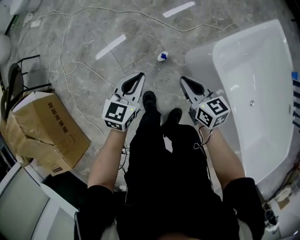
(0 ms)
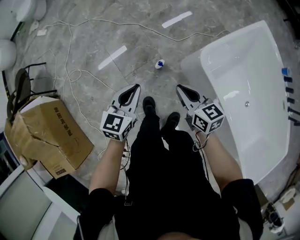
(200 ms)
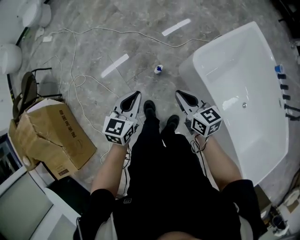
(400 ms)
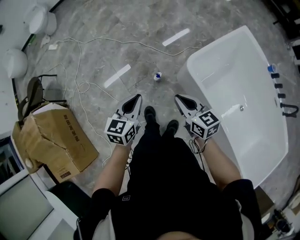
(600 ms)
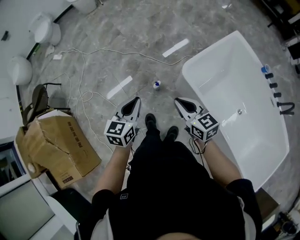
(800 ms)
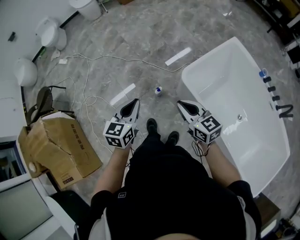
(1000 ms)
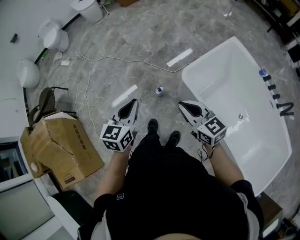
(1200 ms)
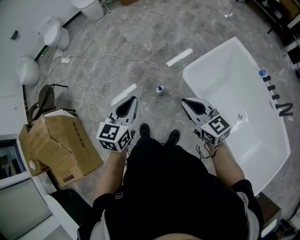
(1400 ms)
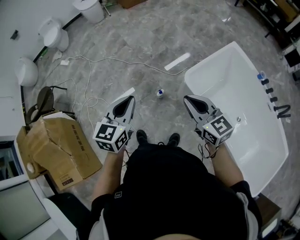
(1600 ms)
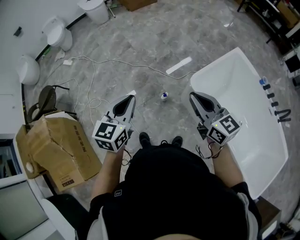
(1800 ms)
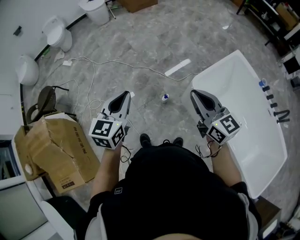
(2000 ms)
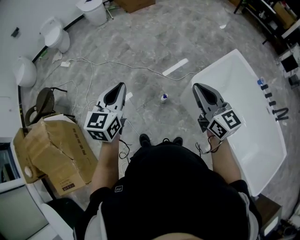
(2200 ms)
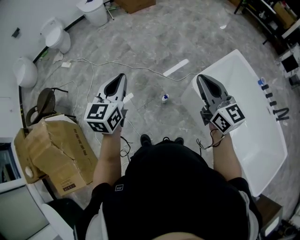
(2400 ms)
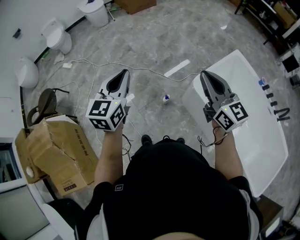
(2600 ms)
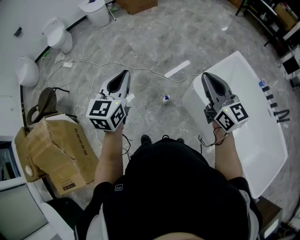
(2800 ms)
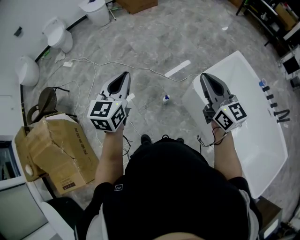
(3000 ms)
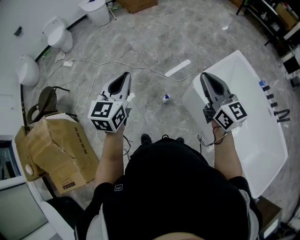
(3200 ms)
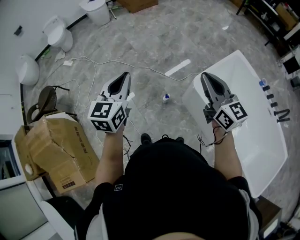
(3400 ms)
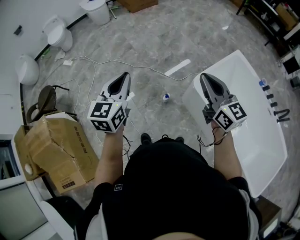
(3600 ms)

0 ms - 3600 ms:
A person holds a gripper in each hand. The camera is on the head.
0 ms - 1800 ms: Both grippers move upward, some 40 cm. The right gripper changes its angle by some 30 degrees.
1800 ms - 3600 ms: The left gripper heads forward, to the left and upward, covering approximately 10 cm. The right gripper goes some 5 cm forward.

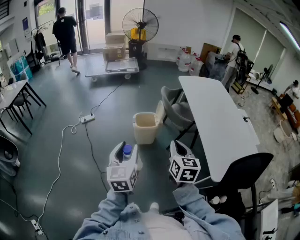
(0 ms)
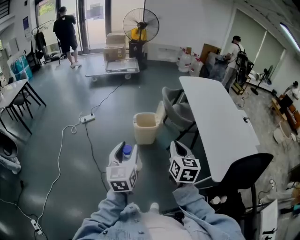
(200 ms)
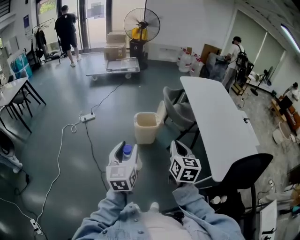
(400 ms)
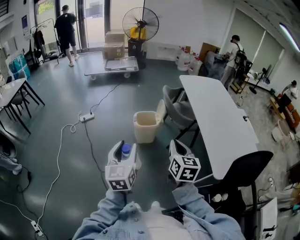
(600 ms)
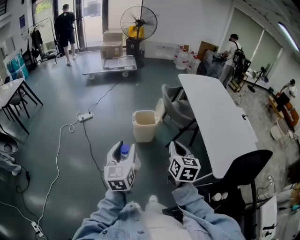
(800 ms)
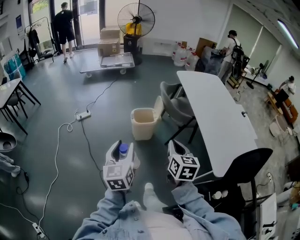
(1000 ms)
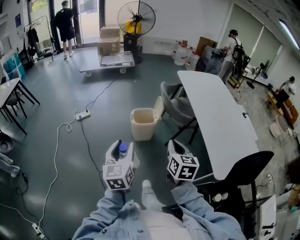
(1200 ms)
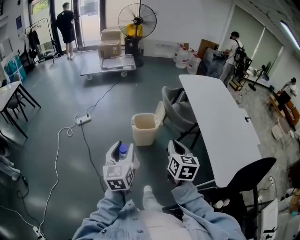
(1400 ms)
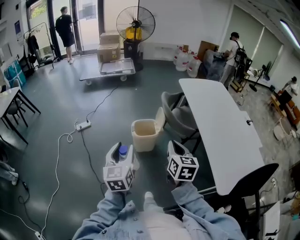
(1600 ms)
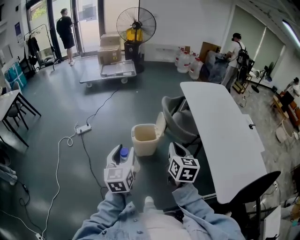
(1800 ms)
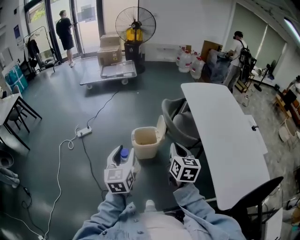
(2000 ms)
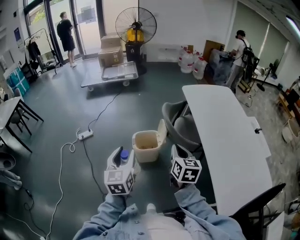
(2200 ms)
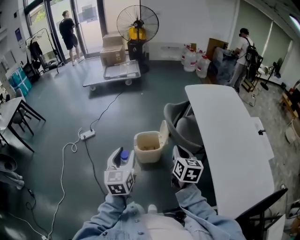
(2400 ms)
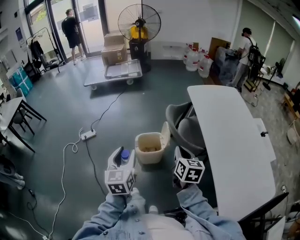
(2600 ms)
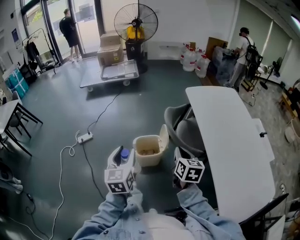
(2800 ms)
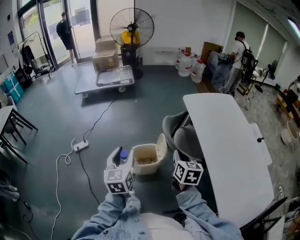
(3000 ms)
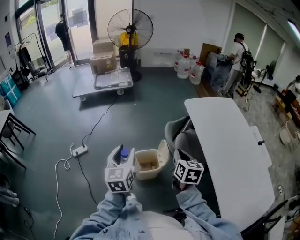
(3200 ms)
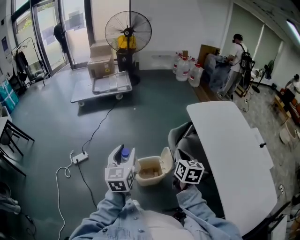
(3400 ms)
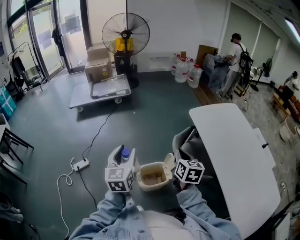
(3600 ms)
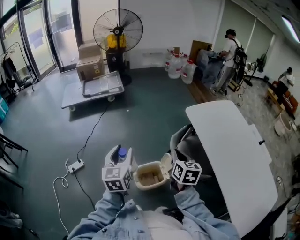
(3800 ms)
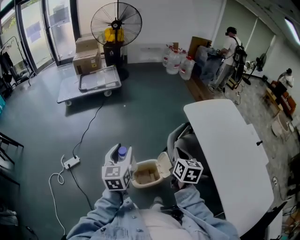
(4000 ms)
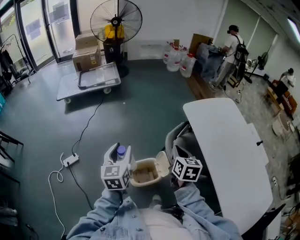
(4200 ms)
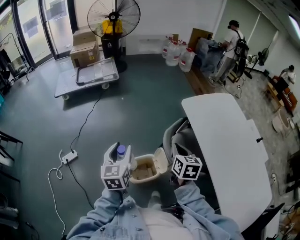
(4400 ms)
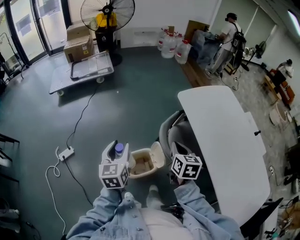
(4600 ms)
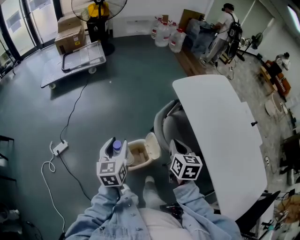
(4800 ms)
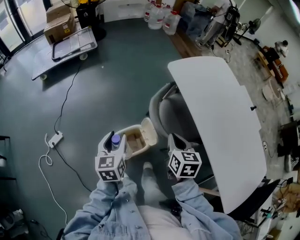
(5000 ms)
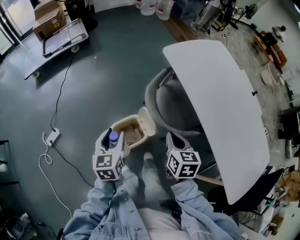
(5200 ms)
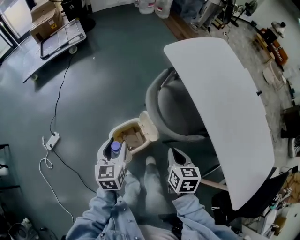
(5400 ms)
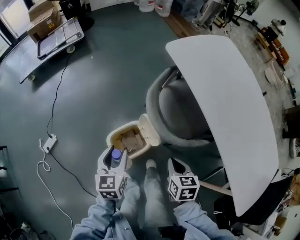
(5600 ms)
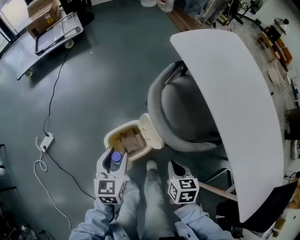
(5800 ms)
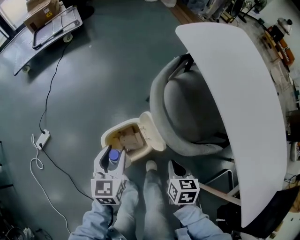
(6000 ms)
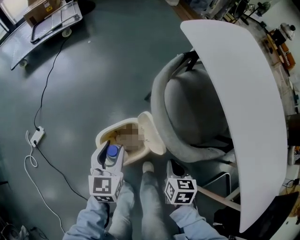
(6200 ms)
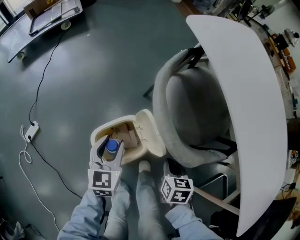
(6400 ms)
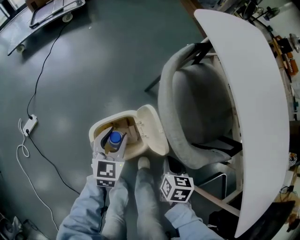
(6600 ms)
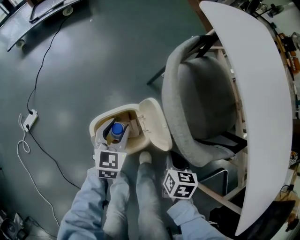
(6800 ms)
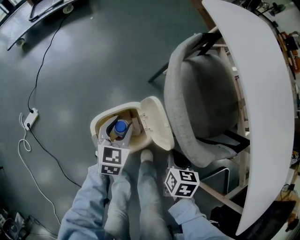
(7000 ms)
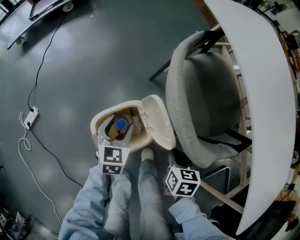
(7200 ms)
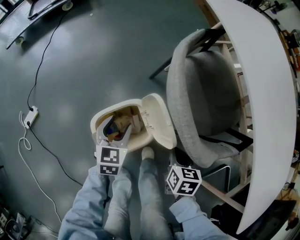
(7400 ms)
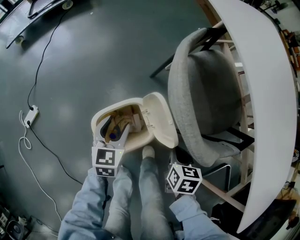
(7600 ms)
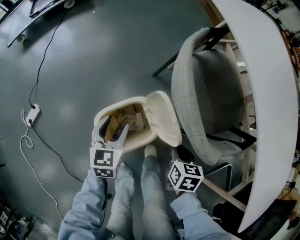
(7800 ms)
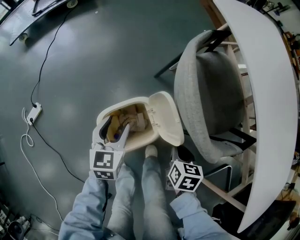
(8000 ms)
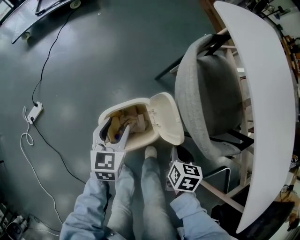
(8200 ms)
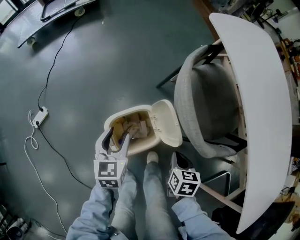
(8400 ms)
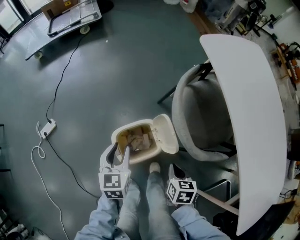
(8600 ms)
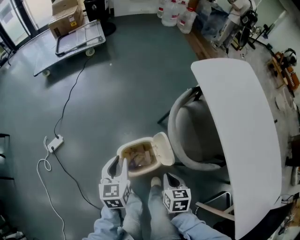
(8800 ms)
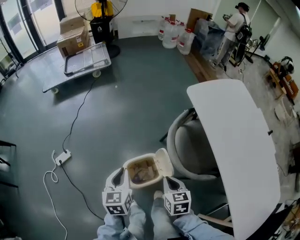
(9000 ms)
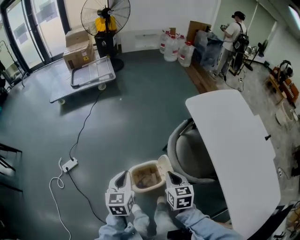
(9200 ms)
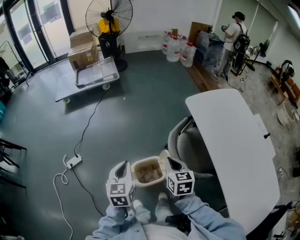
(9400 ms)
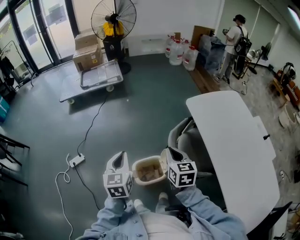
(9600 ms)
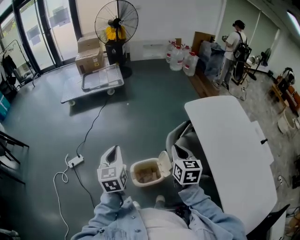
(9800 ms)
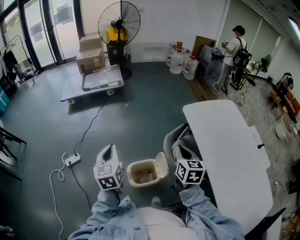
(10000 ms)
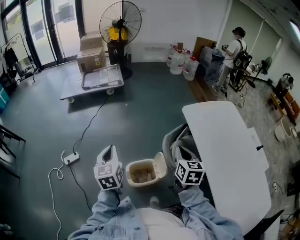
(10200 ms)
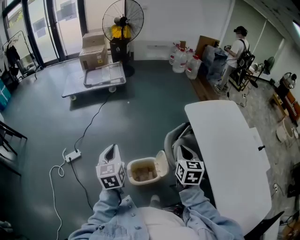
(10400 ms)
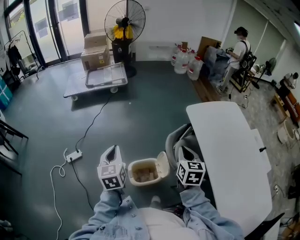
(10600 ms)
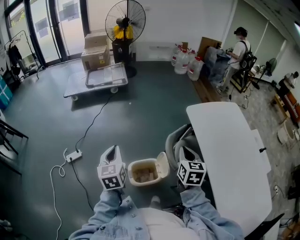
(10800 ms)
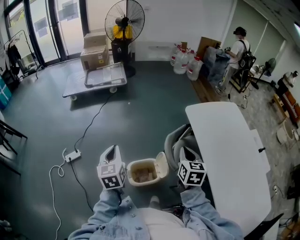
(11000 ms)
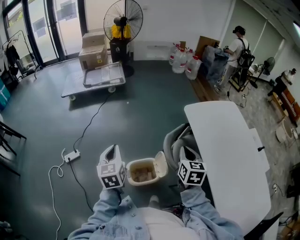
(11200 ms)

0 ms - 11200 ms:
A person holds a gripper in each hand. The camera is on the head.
0 ms - 1600 ms: Both grippers travel together forward, about 15 cm.
1600 ms - 3200 ms: The two grippers go approximately 35 cm forward.
3200 ms - 4800 ms: The two grippers go roughly 20 cm forward and downward.
4800 ms - 6400 ms: The two grippers go roughly 35 cm downward. The right gripper turns by approximately 20 degrees.
6400 ms - 8000 ms: The left gripper is displaced downward by some 5 cm.
8000 ms - 9600 ms: Both grippers move upward, roughly 40 cm. The right gripper angles its fingers upward, by about 30 degrees. Meanwhile the left gripper turns by approximately 20 degrees, and closes its fingers.
9600 ms - 11200 ms: The right gripper travels to the right by some 10 cm.

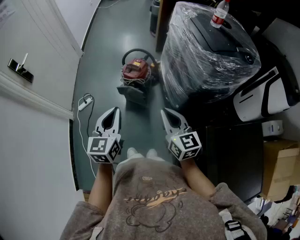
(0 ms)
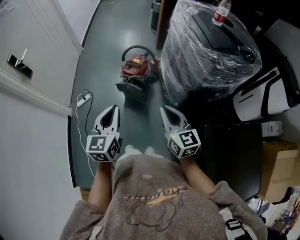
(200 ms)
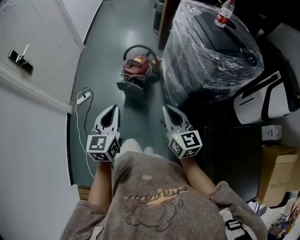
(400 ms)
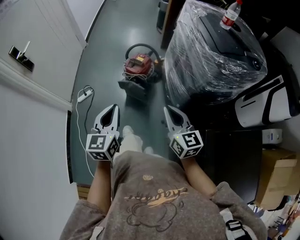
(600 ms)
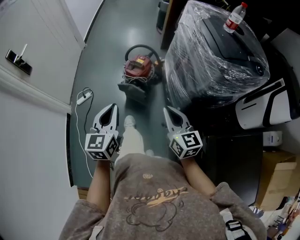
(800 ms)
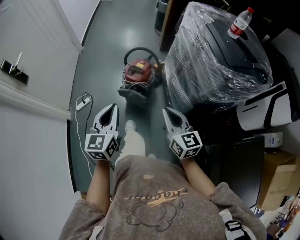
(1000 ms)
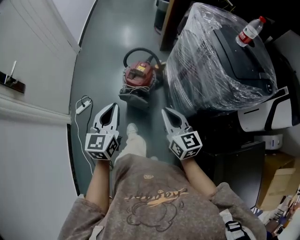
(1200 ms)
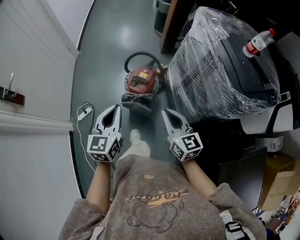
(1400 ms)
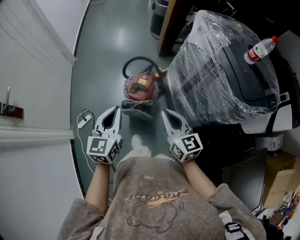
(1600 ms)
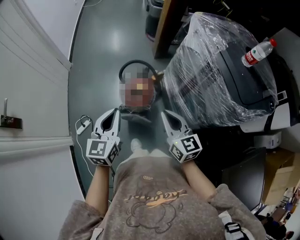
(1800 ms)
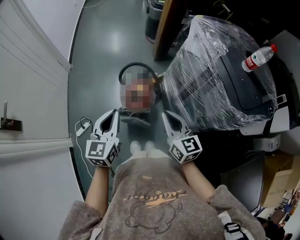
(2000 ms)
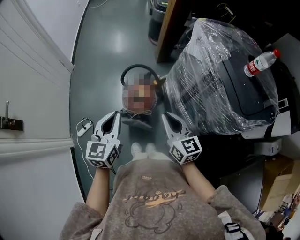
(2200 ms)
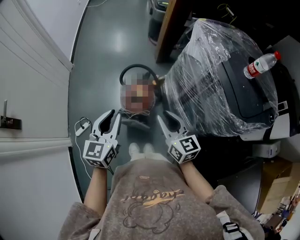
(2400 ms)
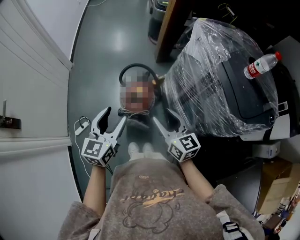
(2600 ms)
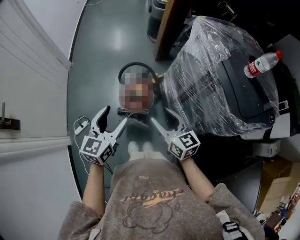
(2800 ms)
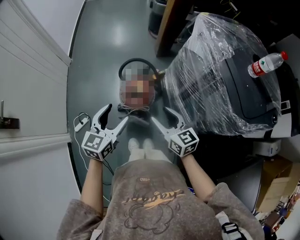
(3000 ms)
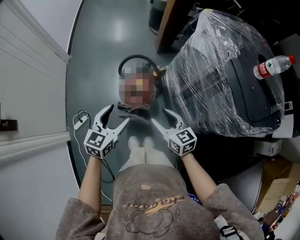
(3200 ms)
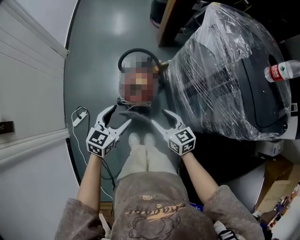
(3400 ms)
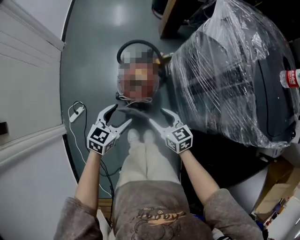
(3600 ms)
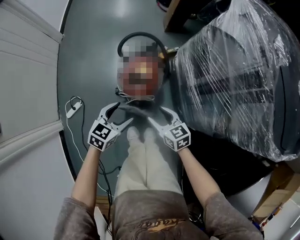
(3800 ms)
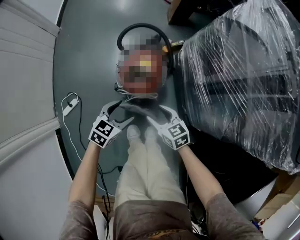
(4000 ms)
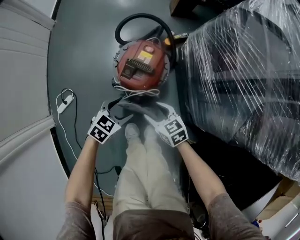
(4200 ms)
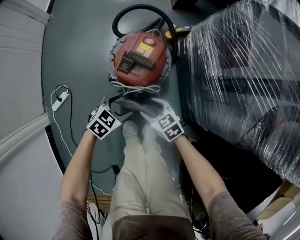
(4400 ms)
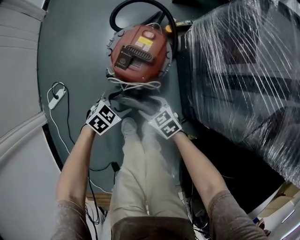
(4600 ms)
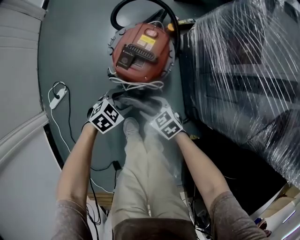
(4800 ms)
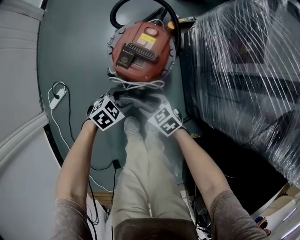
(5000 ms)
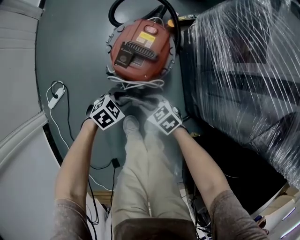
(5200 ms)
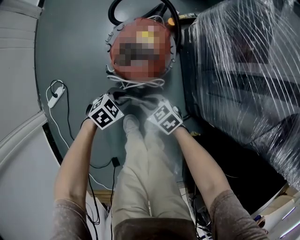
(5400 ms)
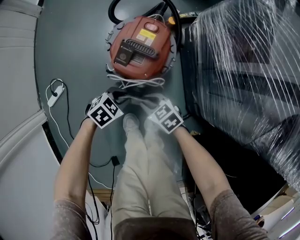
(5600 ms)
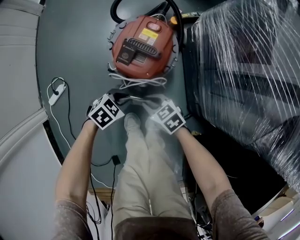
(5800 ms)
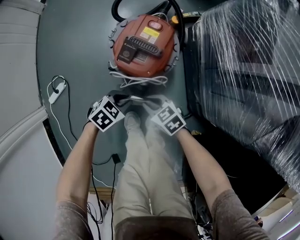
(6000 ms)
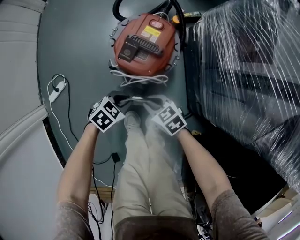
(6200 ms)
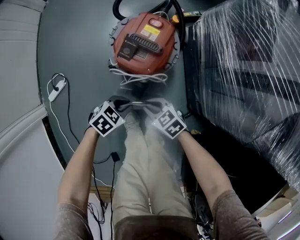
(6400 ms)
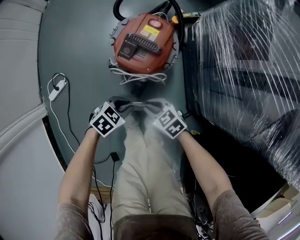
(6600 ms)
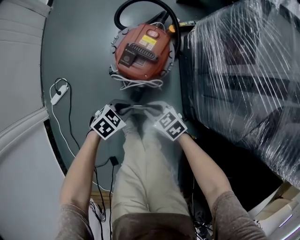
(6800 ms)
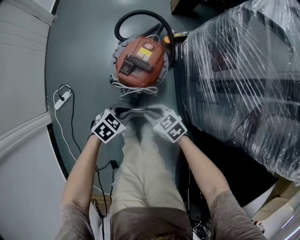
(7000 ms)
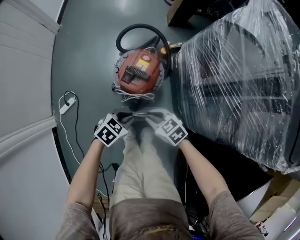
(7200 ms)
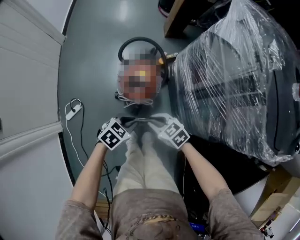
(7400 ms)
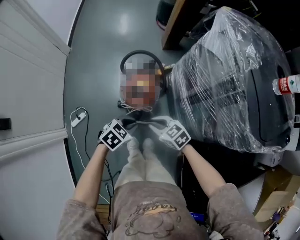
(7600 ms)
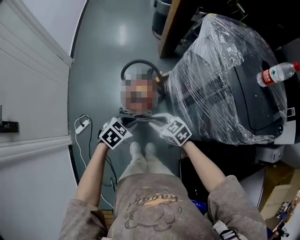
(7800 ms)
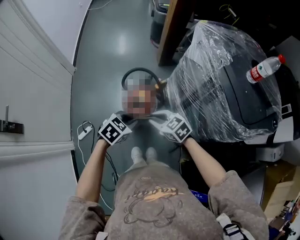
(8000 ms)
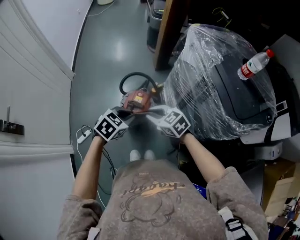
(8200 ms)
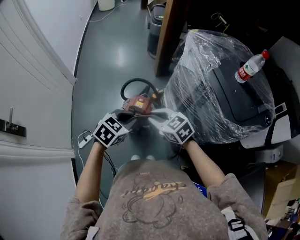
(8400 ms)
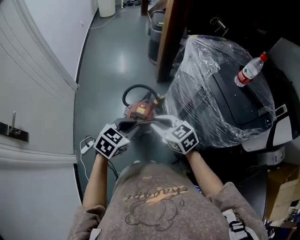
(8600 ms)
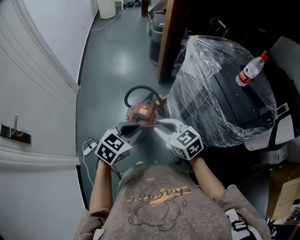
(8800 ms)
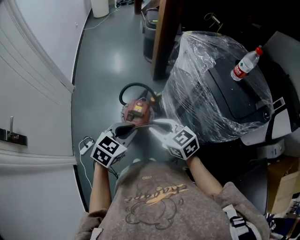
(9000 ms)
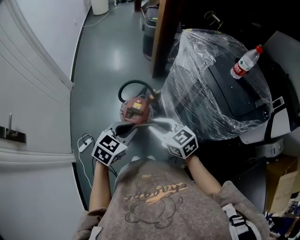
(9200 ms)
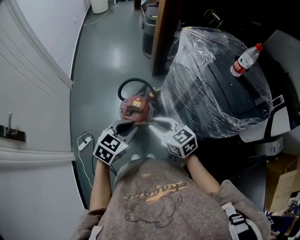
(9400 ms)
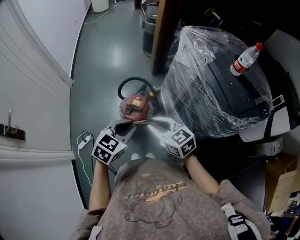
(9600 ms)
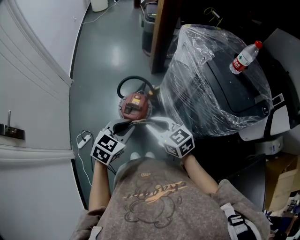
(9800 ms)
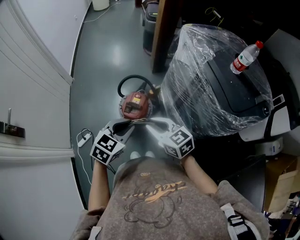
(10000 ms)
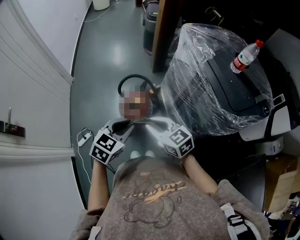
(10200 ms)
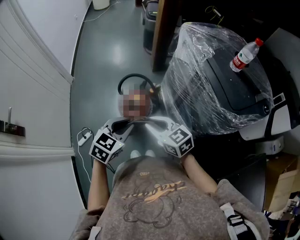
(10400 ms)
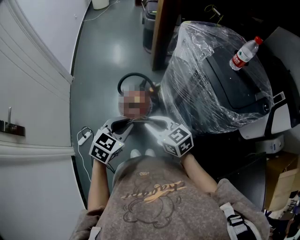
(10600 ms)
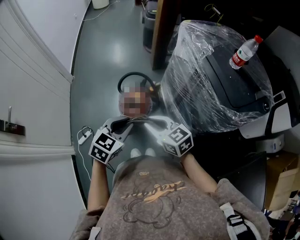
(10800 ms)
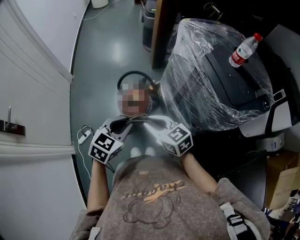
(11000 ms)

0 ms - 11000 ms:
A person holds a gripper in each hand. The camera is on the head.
0 ms - 1600 ms: Both grippers move forward, approximately 30 cm.
1600 ms - 3200 ms: The two grippers go approximately 10 cm downward and forward. The right gripper opens. Meanwhile the left gripper opens up.
3200 ms - 4800 ms: The two grippers go roughly 50 cm downward. The left gripper tilts its fingers roughly 30 degrees downward; the right gripper swivels approximately 40 degrees.
4800 ms - 6200 ms: The right gripper closes its fingers. The left gripper closes its fingers.
6200 ms - 7800 ms: The two grippers go some 40 cm upward.
7800 ms - 9400 ms: Both grippers move upward, some 15 cm. The left gripper rotates some 20 degrees.
9400 ms - 11000 ms: The grippers move only a little.
